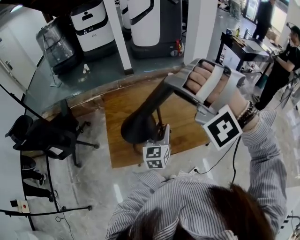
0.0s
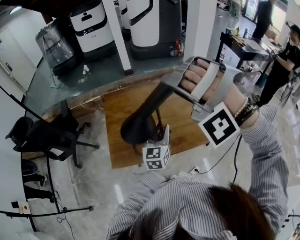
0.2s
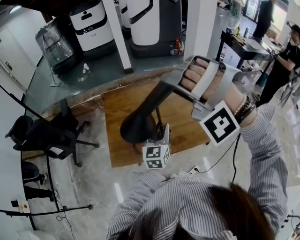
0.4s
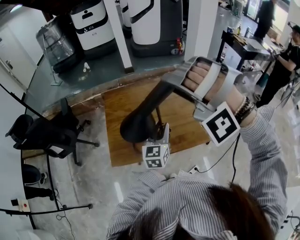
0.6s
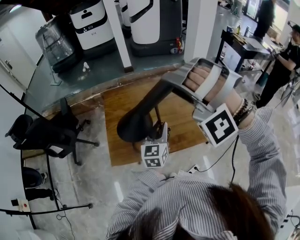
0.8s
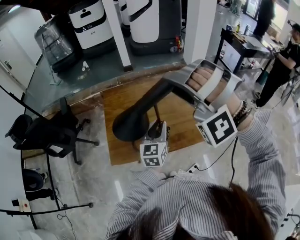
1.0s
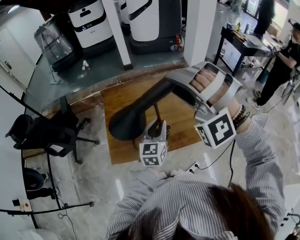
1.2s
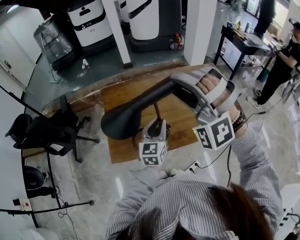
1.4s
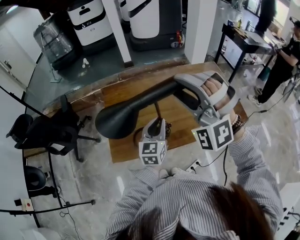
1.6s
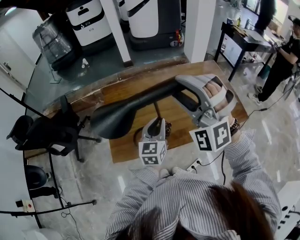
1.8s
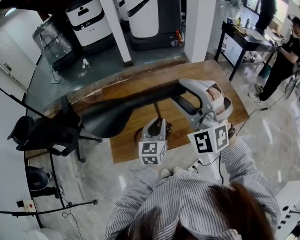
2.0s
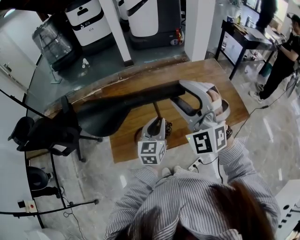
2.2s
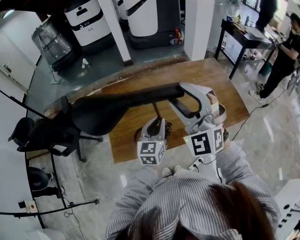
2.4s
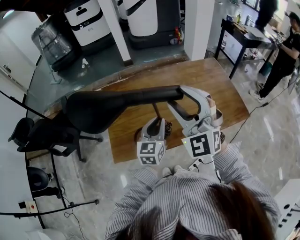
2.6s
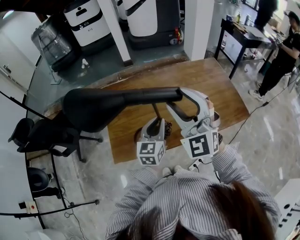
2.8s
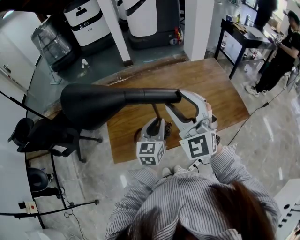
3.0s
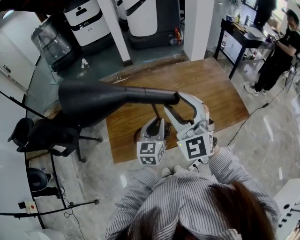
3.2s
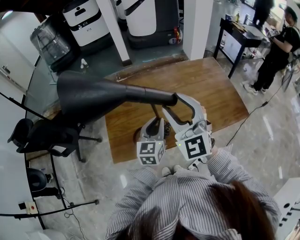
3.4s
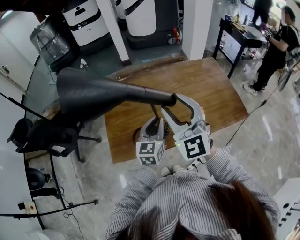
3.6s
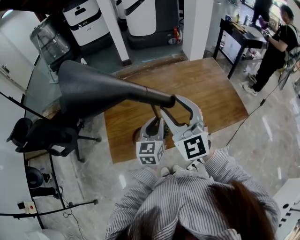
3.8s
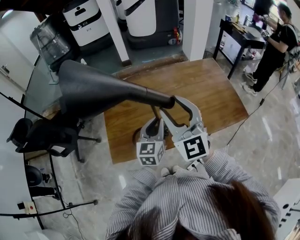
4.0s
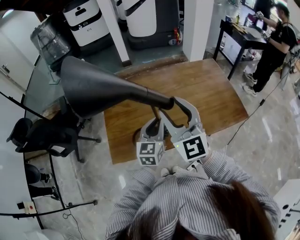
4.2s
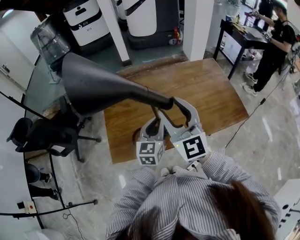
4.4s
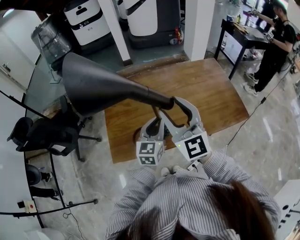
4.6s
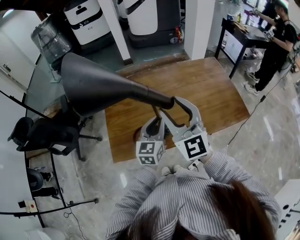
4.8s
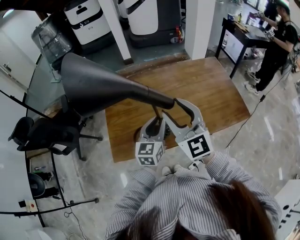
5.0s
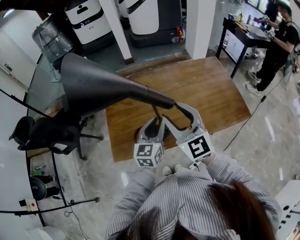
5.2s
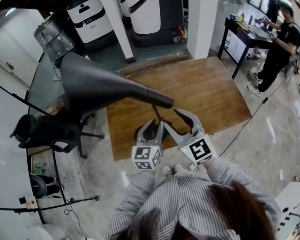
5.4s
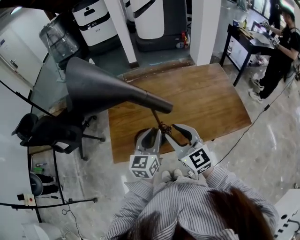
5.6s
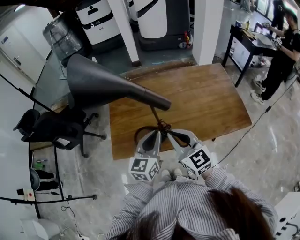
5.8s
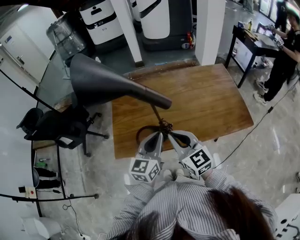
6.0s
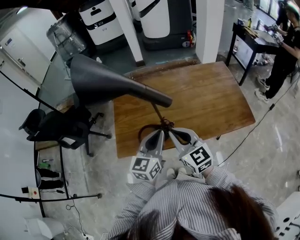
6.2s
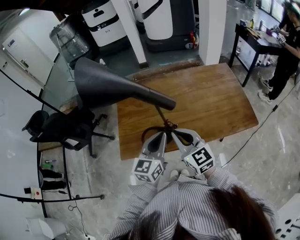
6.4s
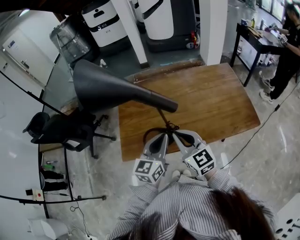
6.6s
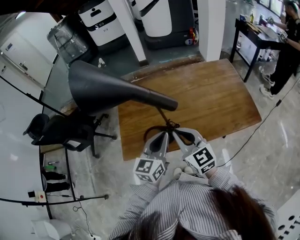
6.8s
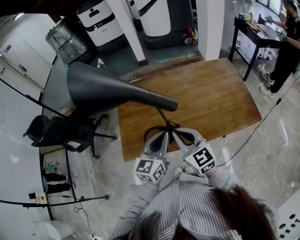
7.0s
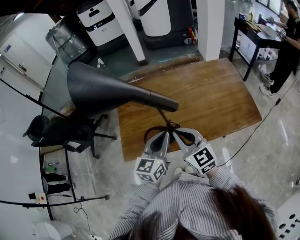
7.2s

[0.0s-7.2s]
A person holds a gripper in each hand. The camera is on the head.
0.0s to 1.4s: The right gripper changes its angle by roughly 30 degrees.
1.4s to 2.8s: The right gripper twists about 50 degrees clockwise, seen from behind.
2.8s to 4.4s: The right gripper rotates about 30 degrees.
4.4s to 5.8s: The left gripper heads backward, covering roughly 5 cm. Meanwhile the right gripper heads downward and backward, covering approximately 10 cm, swivels roughly 20 degrees, and closes its fingers.
5.8s to 7.2s: The grippers stay close to where they were, moving slightly.

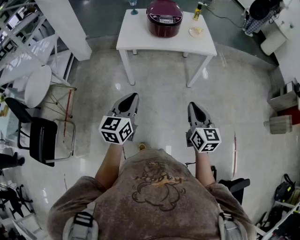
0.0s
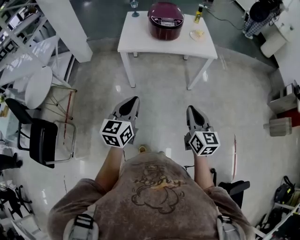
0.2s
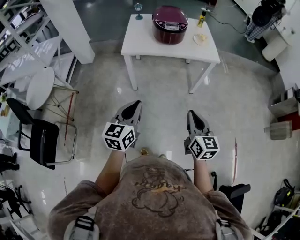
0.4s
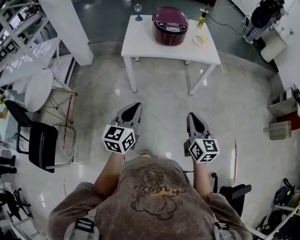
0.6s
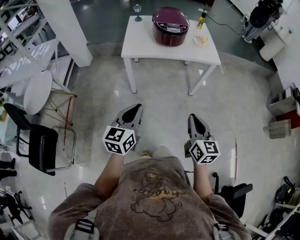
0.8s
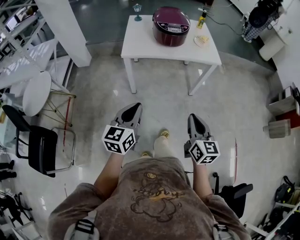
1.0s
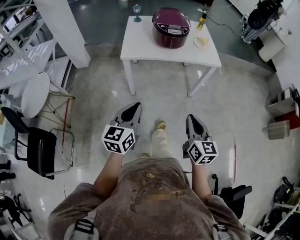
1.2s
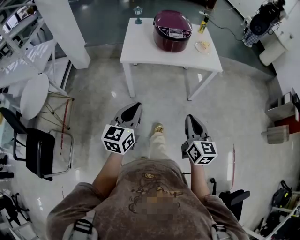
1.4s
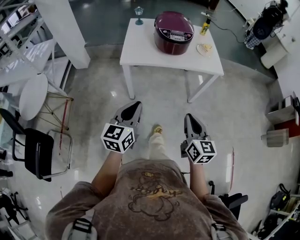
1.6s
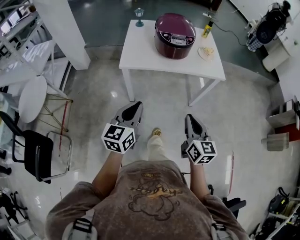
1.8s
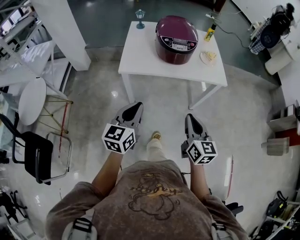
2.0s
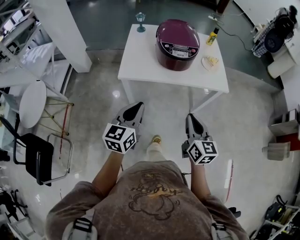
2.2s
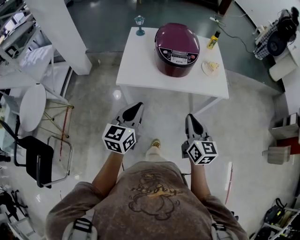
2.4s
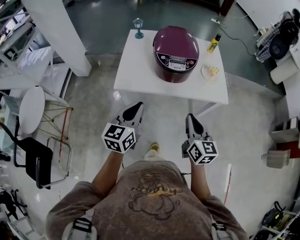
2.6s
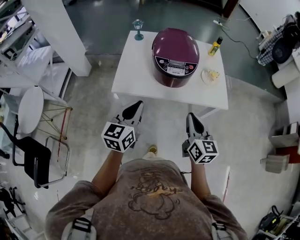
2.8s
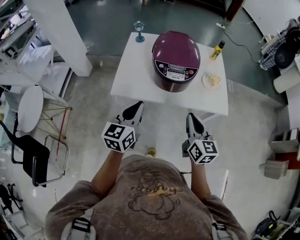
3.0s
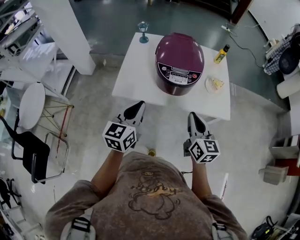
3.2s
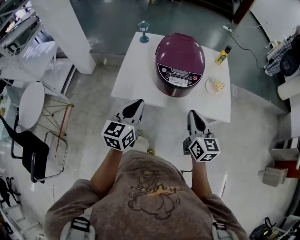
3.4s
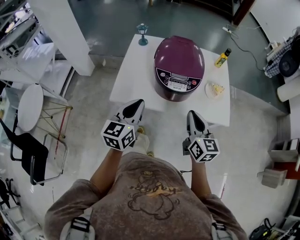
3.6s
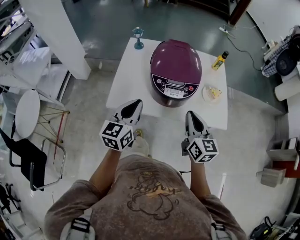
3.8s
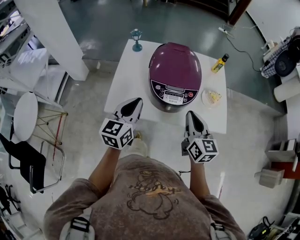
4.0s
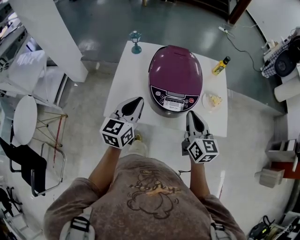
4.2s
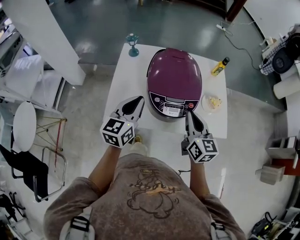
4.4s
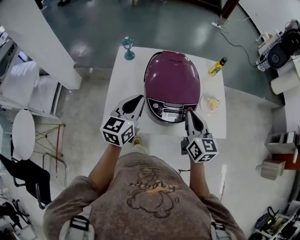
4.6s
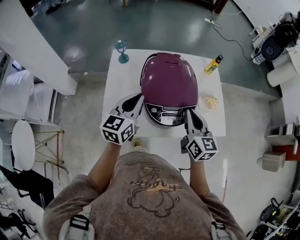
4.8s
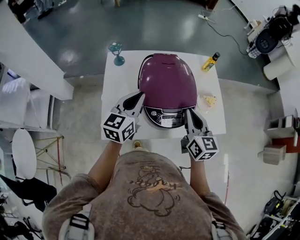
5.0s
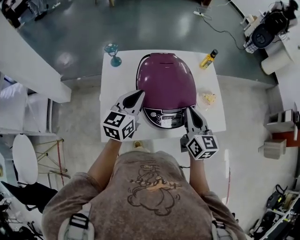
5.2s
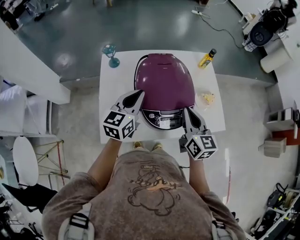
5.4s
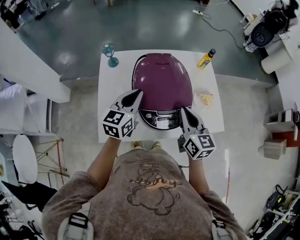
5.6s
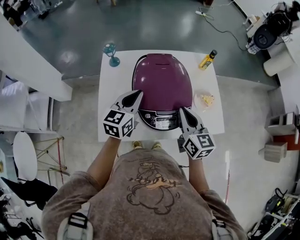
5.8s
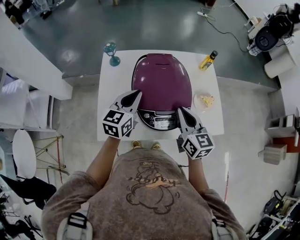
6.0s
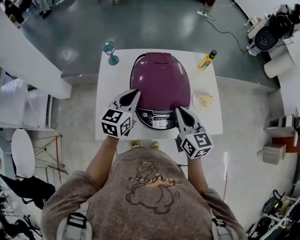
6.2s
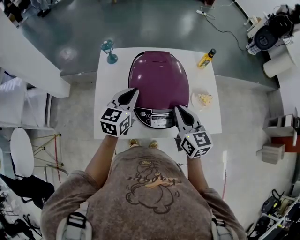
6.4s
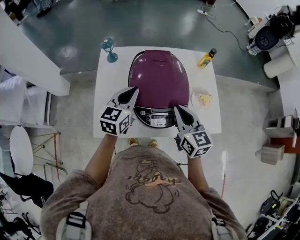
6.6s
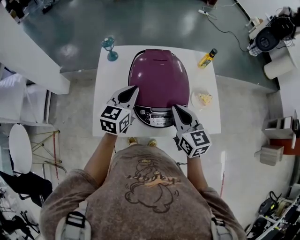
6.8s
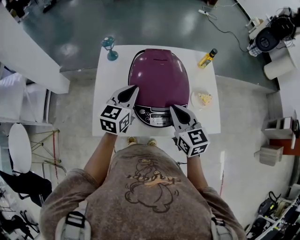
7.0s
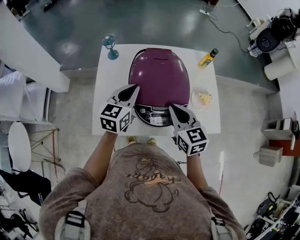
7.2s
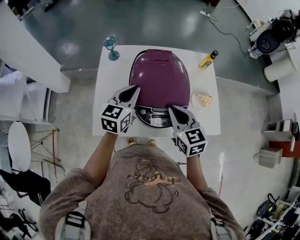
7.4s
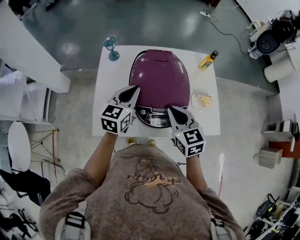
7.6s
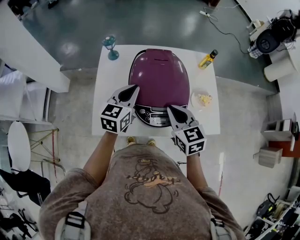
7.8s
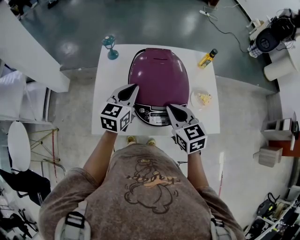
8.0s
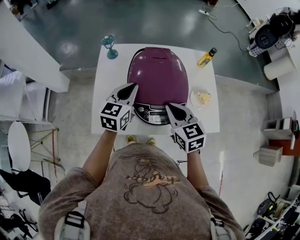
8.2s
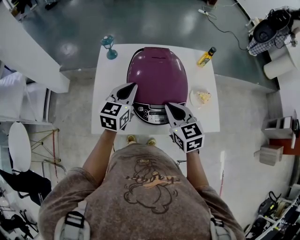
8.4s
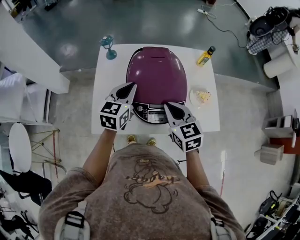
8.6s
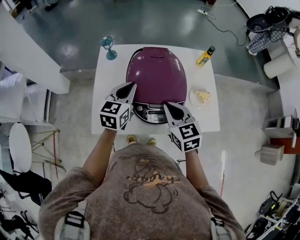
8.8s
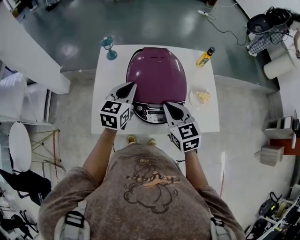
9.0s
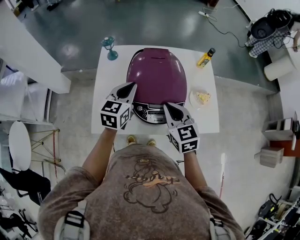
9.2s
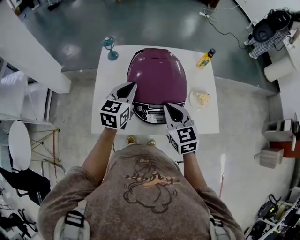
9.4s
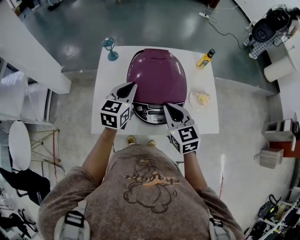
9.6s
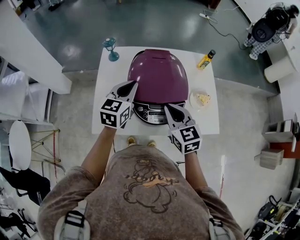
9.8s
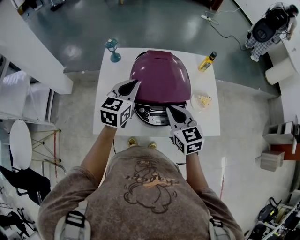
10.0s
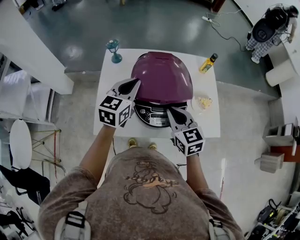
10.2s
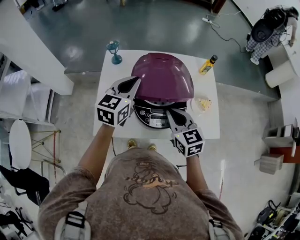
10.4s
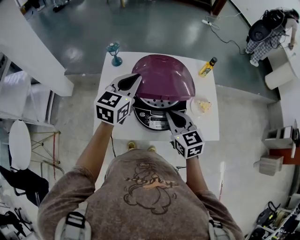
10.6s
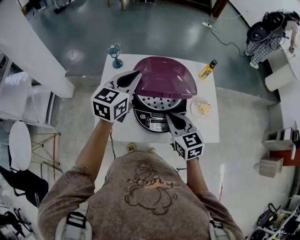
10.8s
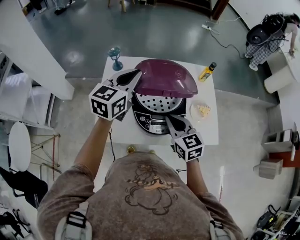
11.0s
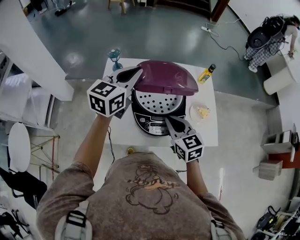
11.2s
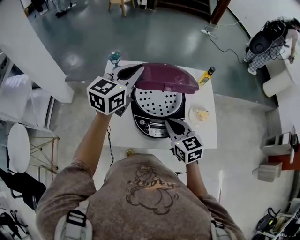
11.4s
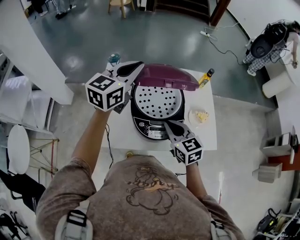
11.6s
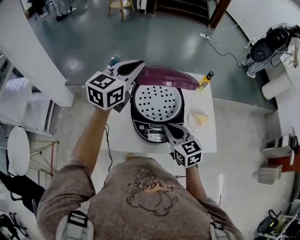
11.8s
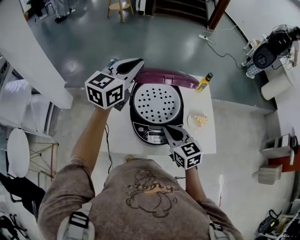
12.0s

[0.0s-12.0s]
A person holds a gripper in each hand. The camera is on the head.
0.0s to 1.6s: Both grippers travel together forward and to the left, approximately 10 cm.
1.6s to 3.0s: The grippers both shift forward by about 30 cm.
3.0s to 4.4s: The grippers both shift forward by approximately 20 cm.
4.4s to 6.0s: The left gripper heads forward, covering approximately 10 cm, while the right gripper travels forward by some 5 cm.
6.0s to 7.6s: The right gripper turns by approximately 20 degrees.
7.6s to 9.0s: Both grippers stay put.
9.0s to 10.4s: The left gripper travels upward by approximately 5 cm.
10.4s to 12.0s: The left gripper heads upward and forward, covering about 15 cm.

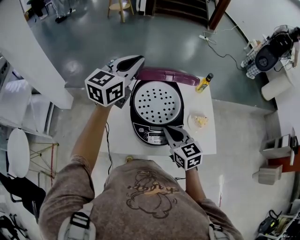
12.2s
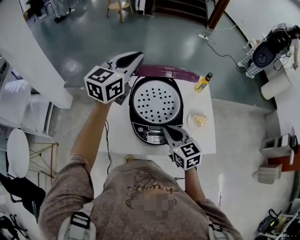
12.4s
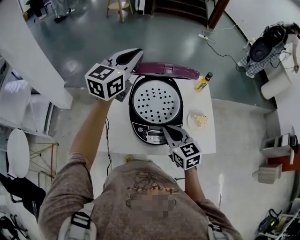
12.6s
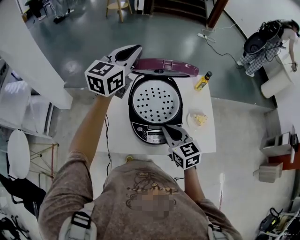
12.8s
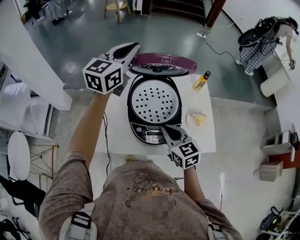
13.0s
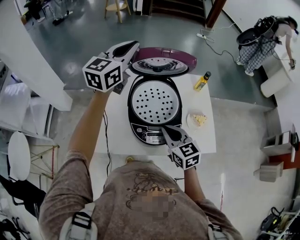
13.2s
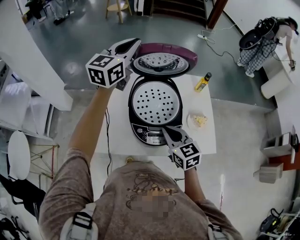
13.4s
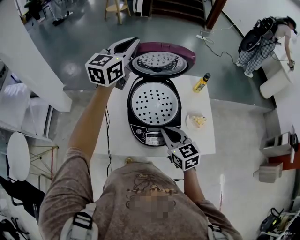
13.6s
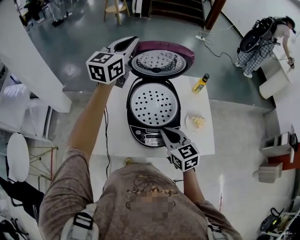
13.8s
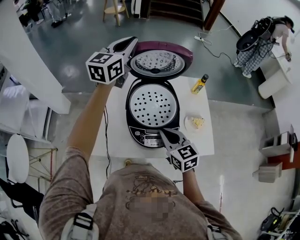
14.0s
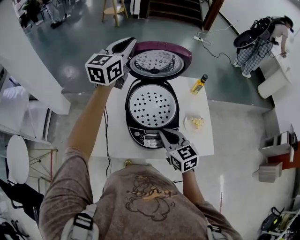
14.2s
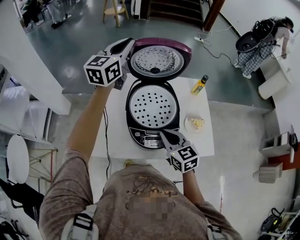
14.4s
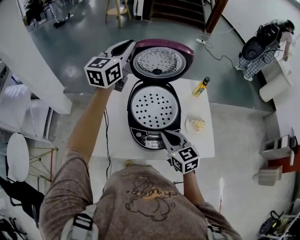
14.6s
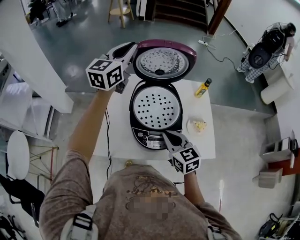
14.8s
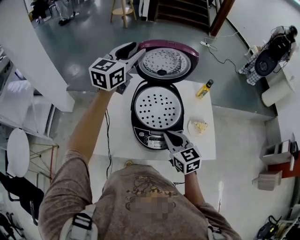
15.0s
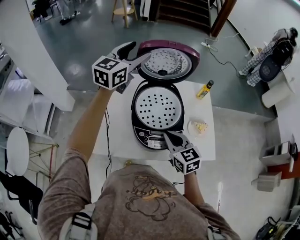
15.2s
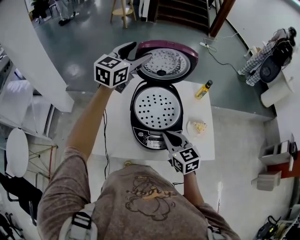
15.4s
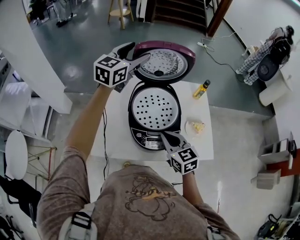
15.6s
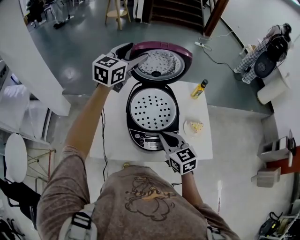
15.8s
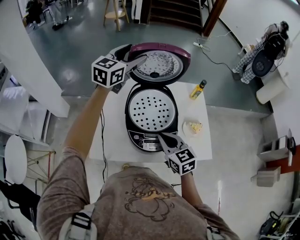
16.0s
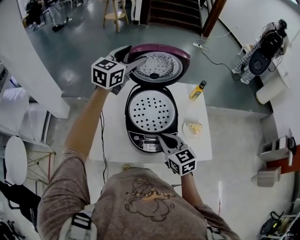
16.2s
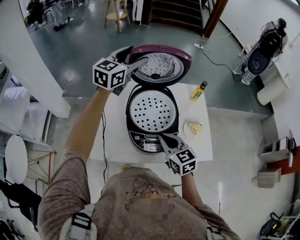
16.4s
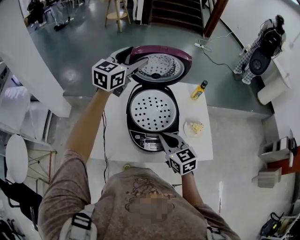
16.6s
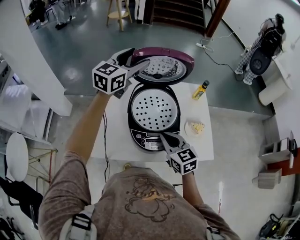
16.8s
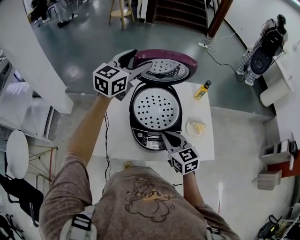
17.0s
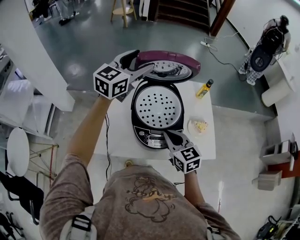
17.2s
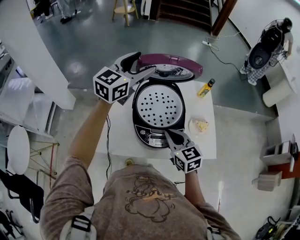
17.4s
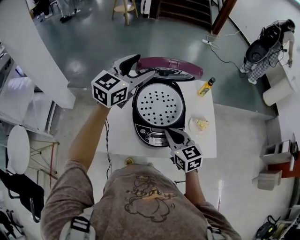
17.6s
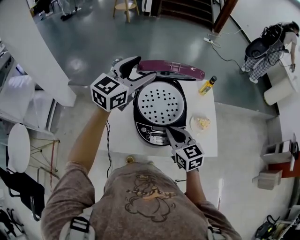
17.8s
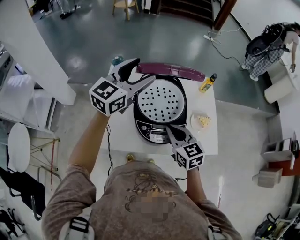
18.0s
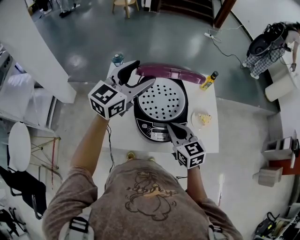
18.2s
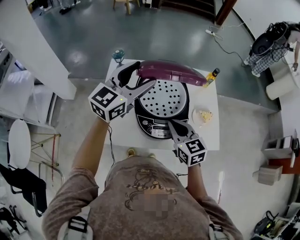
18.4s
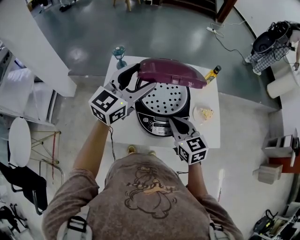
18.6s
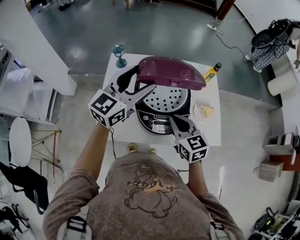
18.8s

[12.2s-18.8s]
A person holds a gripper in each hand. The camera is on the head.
12.2s to 13.8s: The left gripper shifts about 5 cm forward.
13.8s to 15.4s: The left gripper opens.
15.4s to 17.2s: The grippers move only a little.
17.2s to 18.8s: The left gripper is displaced backward and downward by roughly 10 cm.
